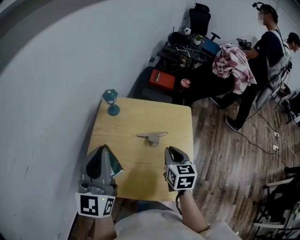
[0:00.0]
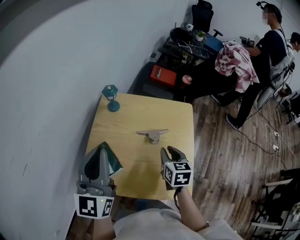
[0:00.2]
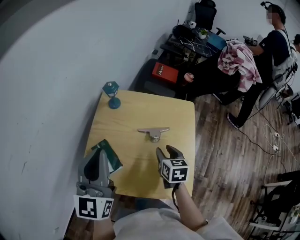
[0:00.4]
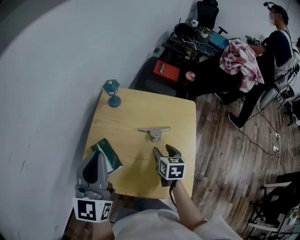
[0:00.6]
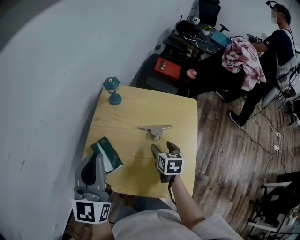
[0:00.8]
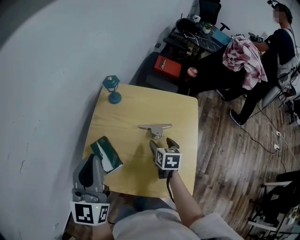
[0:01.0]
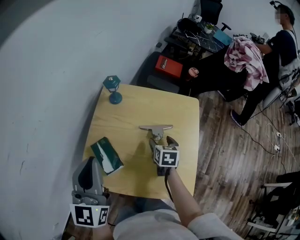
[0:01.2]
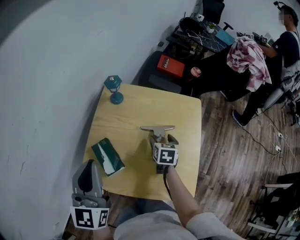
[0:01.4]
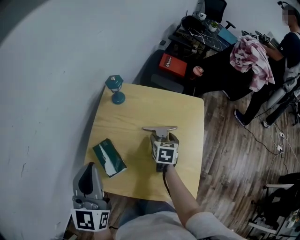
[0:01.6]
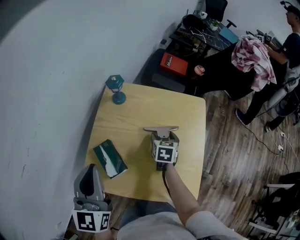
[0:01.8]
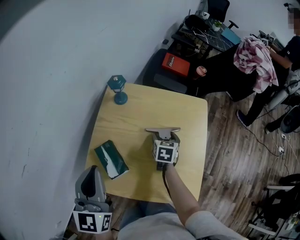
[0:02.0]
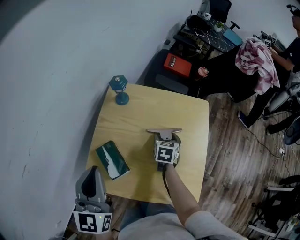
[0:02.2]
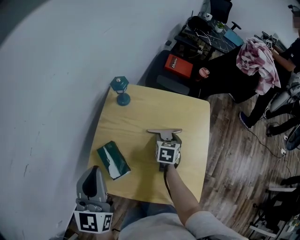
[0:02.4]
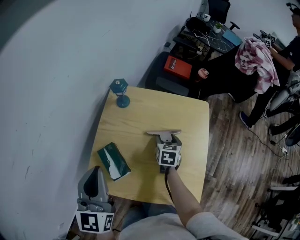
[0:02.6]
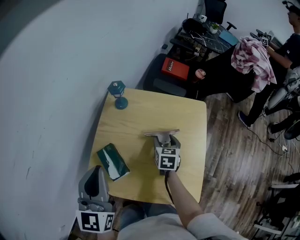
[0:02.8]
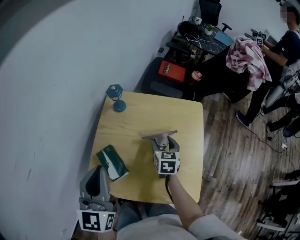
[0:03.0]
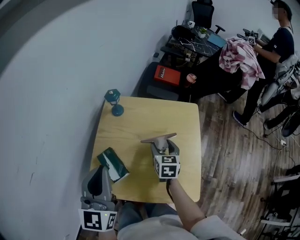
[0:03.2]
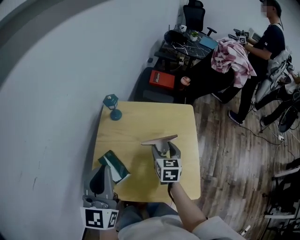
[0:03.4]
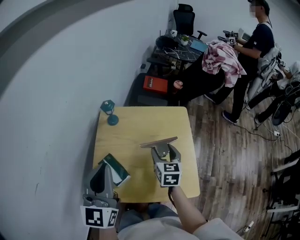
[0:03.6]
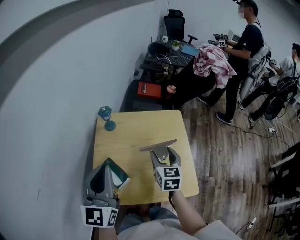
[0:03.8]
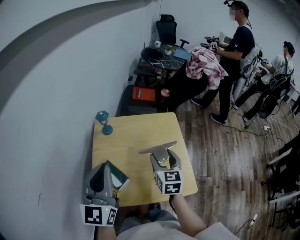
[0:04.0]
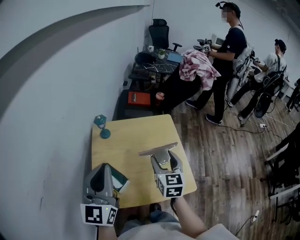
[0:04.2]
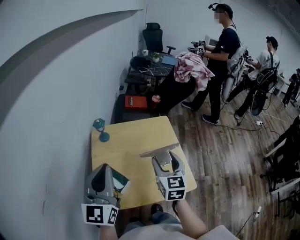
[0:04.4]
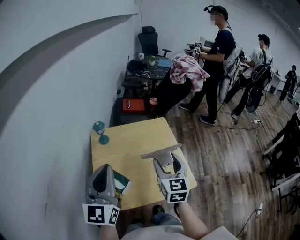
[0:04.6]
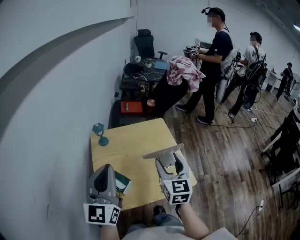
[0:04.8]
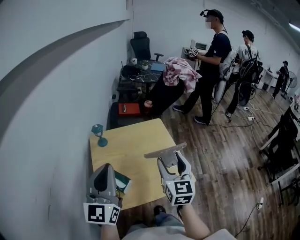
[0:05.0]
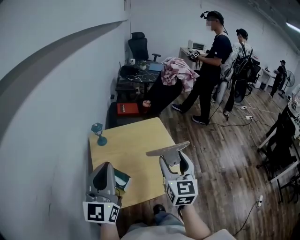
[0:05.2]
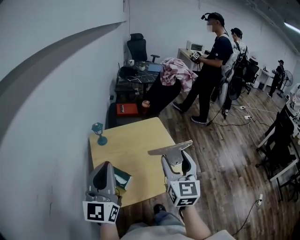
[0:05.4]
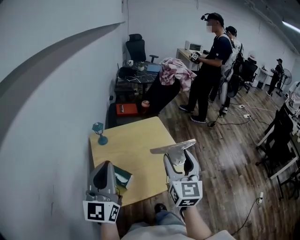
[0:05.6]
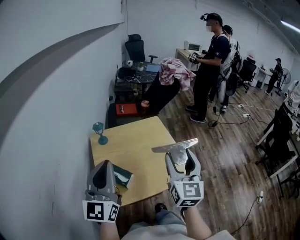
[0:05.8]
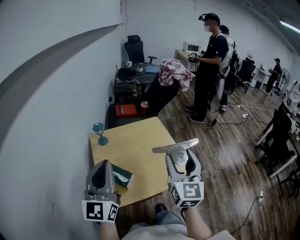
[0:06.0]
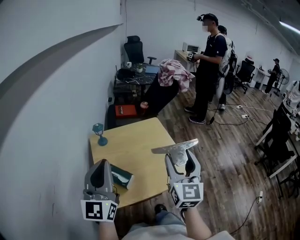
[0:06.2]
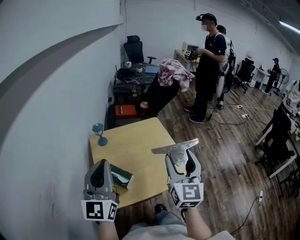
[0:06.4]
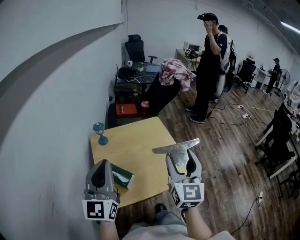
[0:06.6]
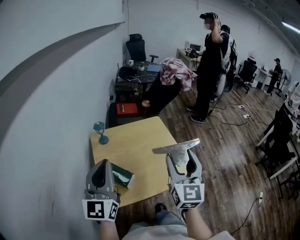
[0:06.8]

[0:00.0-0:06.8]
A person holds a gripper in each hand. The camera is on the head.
0:00.0 to 0:01.4: The left gripper goes approximately 5 cm downward. The right gripper travels downward and forward by approximately 15 cm, and opens.
0:01.4 to 0:02.8: The grippers stay close to where they were, moving slightly.
0:02.8 to 0:04.0: The left gripper goes some 10 cm upward, and swivels some 20 degrees. The right gripper moves upward and backward, about 20 cm, and swivels some 20 degrees.
0:04.0 to 0:05.4: The left gripper heads backward, covering about 5 cm; the right gripper moves backward and upward, about 20 cm, and swivels roughly 30 degrees.
0:05.4 to 0:06.8: The grippers make only small movements.

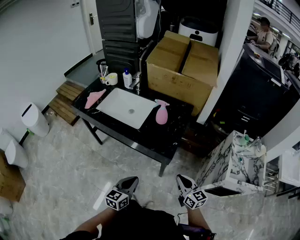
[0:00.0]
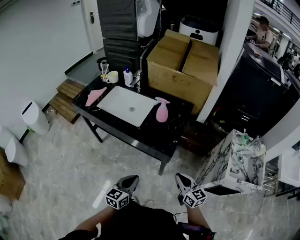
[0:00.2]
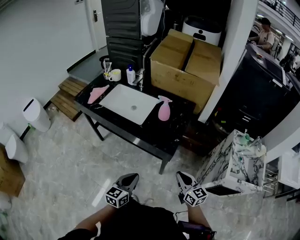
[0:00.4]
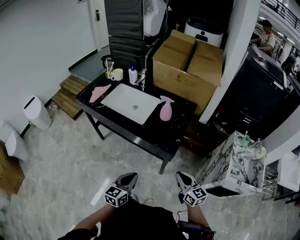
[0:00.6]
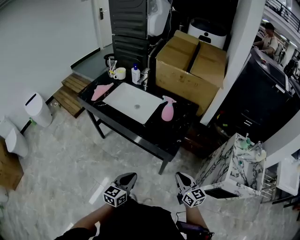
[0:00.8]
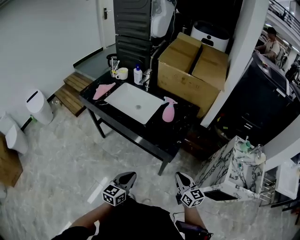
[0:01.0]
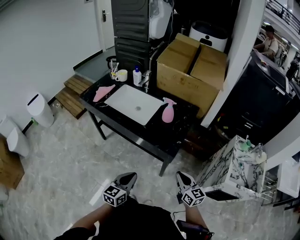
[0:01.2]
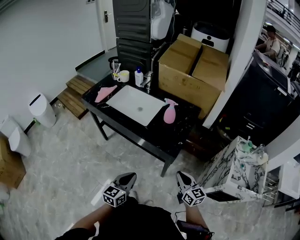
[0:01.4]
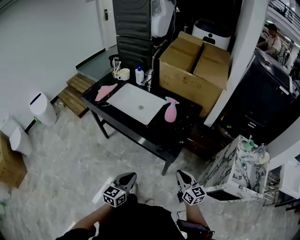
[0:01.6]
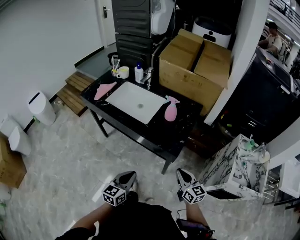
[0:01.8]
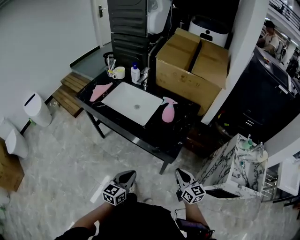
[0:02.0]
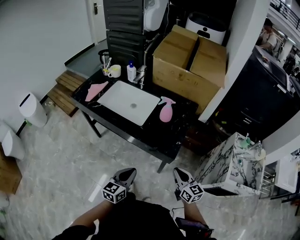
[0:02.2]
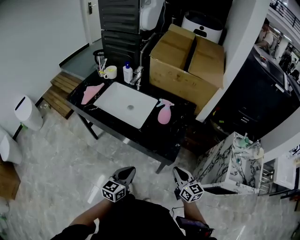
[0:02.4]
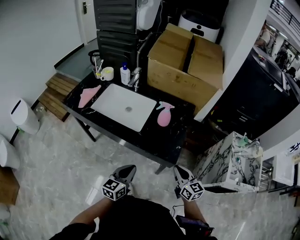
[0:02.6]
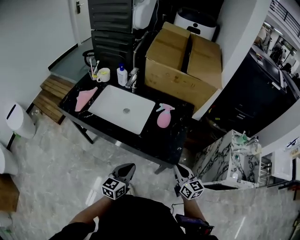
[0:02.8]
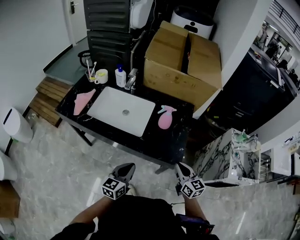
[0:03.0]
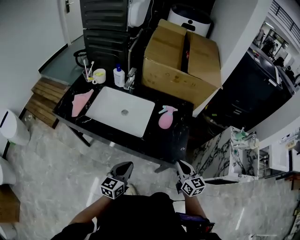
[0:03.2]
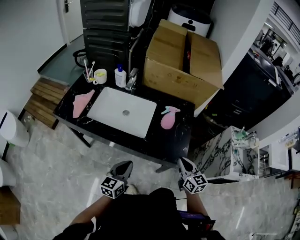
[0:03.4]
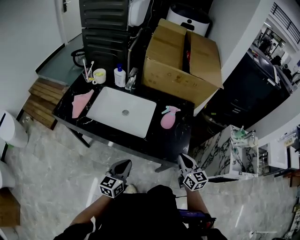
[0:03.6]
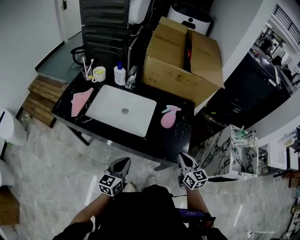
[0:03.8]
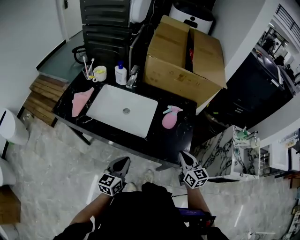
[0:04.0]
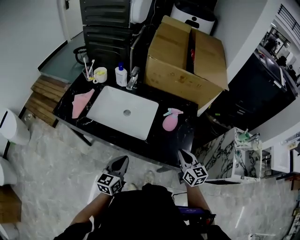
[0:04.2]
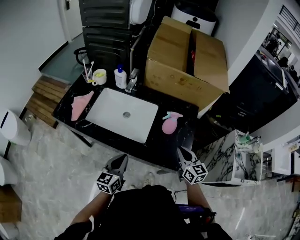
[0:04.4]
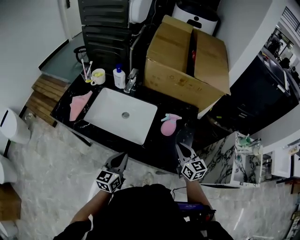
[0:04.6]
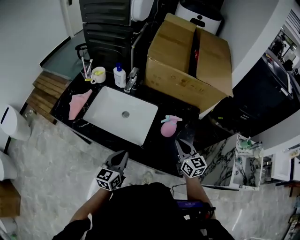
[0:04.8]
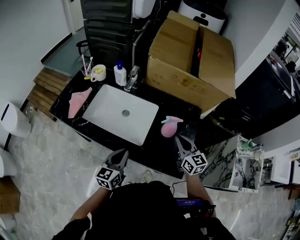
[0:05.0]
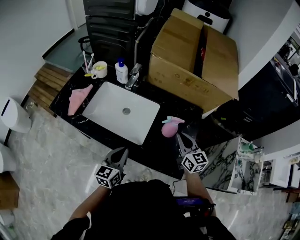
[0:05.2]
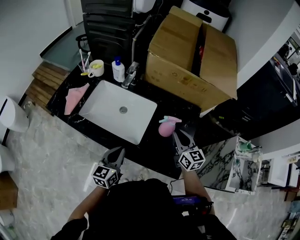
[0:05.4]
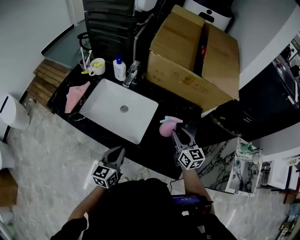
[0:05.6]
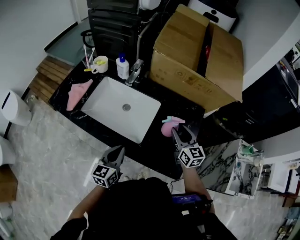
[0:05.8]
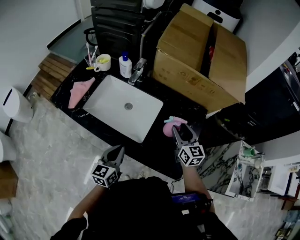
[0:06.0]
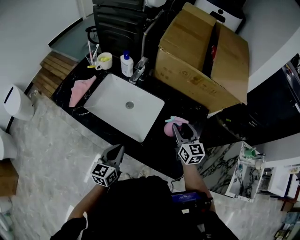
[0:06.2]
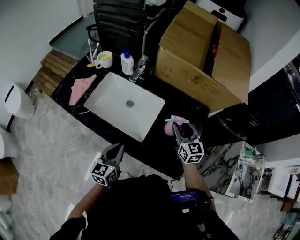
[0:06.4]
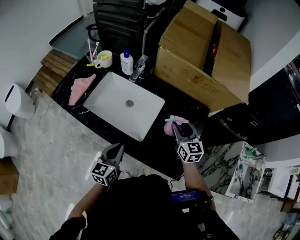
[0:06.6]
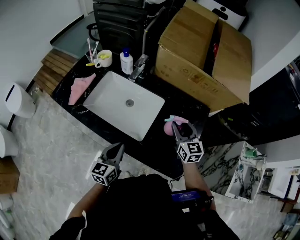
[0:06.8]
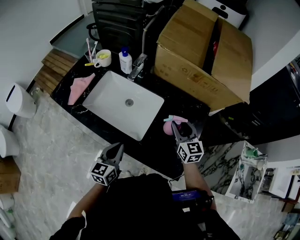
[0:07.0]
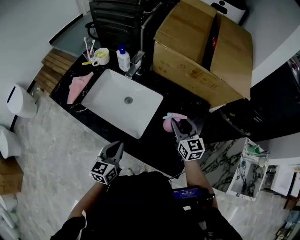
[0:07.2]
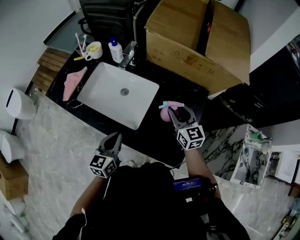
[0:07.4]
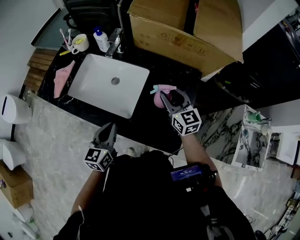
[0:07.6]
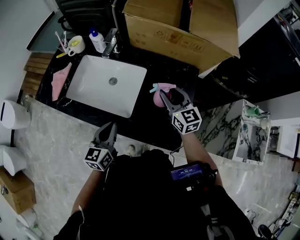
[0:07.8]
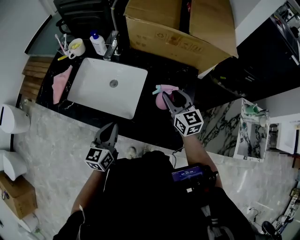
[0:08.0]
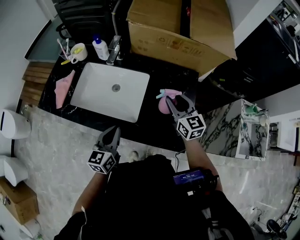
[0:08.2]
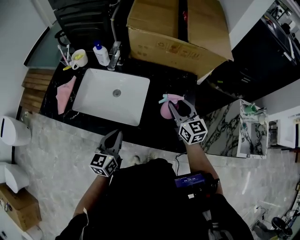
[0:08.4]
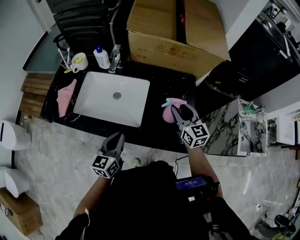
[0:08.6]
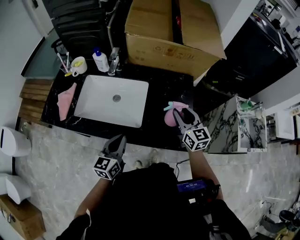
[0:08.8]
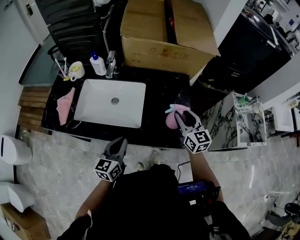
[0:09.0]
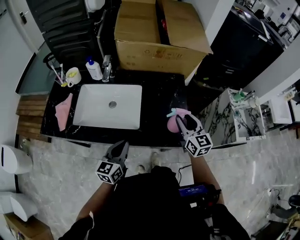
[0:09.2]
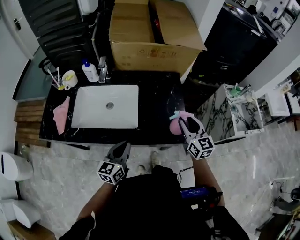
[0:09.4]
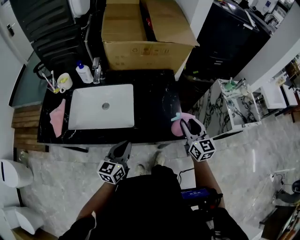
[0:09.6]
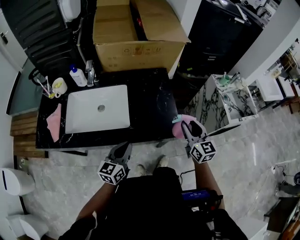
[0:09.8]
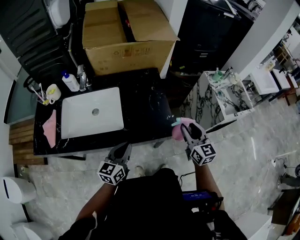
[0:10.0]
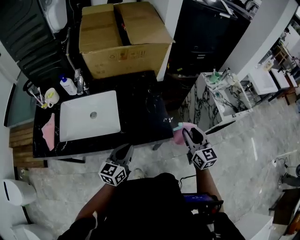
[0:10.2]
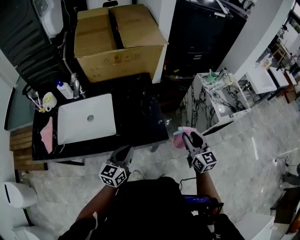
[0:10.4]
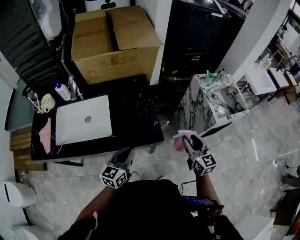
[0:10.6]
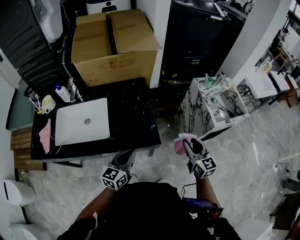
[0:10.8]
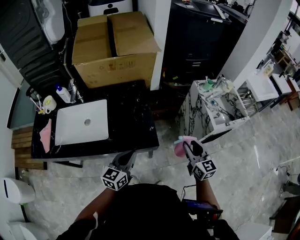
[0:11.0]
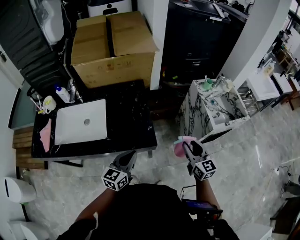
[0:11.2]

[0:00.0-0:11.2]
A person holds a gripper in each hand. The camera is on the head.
0:00.0 to 0:01.6: The grippers move only a little.
0:01.6 to 0:03.2: Both grippers travel together forward and to the left, approximately 20 cm.
0:03.2 to 0:04.8: The right gripper goes some 15 cm forward, while the left gripper heads forward, covering roughly 10 cm.
0:04.8 to 0:06.4: The right gripper shifts roughly 10 cm forward, and opens.
0:06.4 to 0:08.0: The grippers make only small movements.
0:08.0 to 0:09.6: The left gripper shifts by roughly 5 cm, and changes its angle by approximately 30 degrees; the right gripper changes place by roughly 20 cm, and rotates some 30 degrees.
0:09.6 to 0:11.2: The grippers both shift to the right by roughly 20 cm.

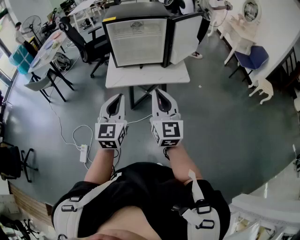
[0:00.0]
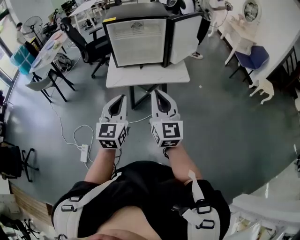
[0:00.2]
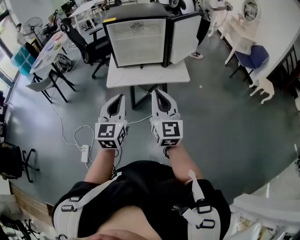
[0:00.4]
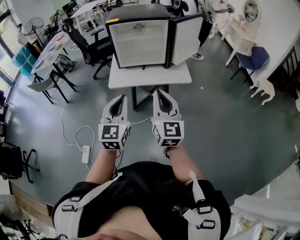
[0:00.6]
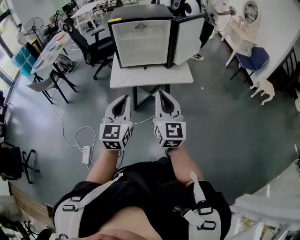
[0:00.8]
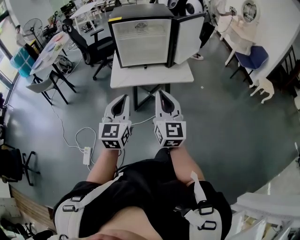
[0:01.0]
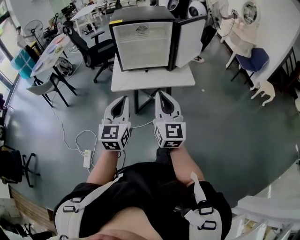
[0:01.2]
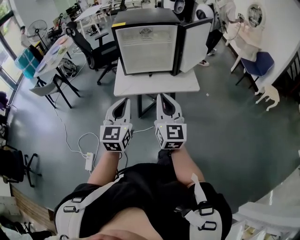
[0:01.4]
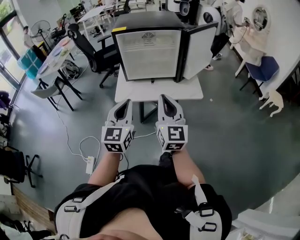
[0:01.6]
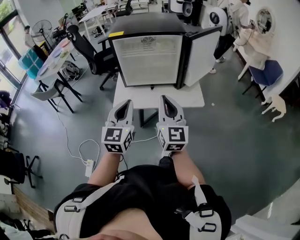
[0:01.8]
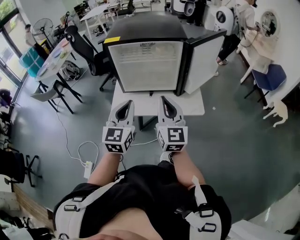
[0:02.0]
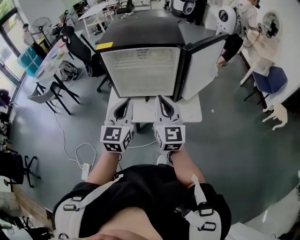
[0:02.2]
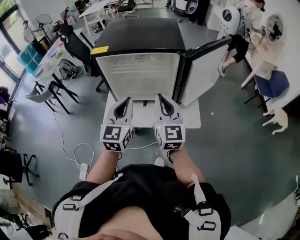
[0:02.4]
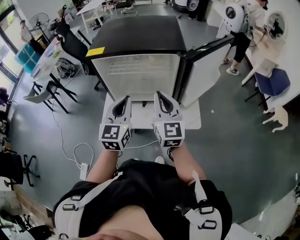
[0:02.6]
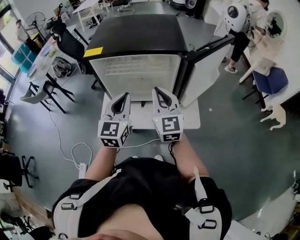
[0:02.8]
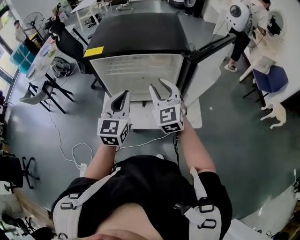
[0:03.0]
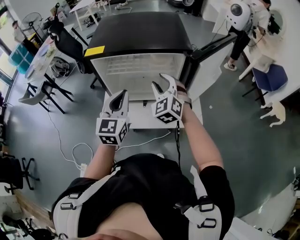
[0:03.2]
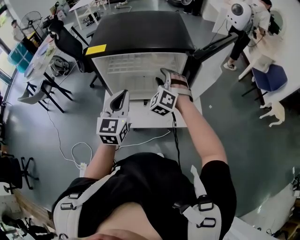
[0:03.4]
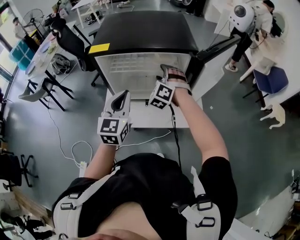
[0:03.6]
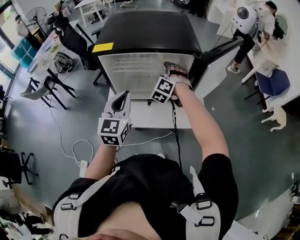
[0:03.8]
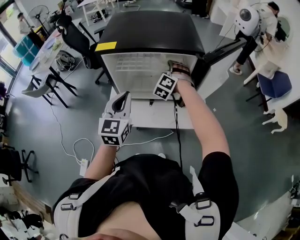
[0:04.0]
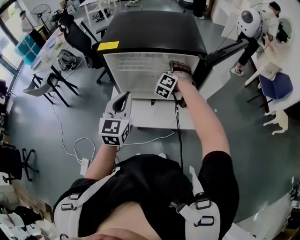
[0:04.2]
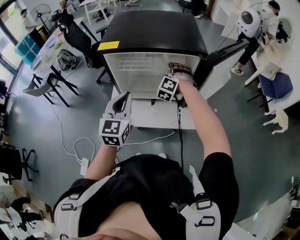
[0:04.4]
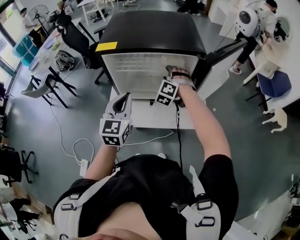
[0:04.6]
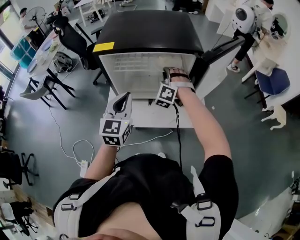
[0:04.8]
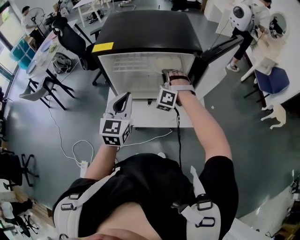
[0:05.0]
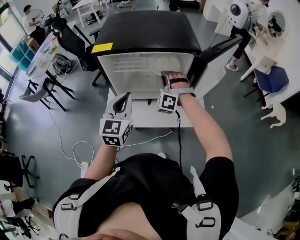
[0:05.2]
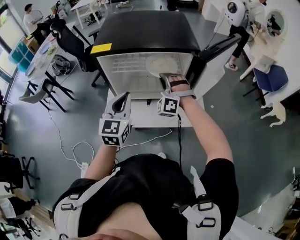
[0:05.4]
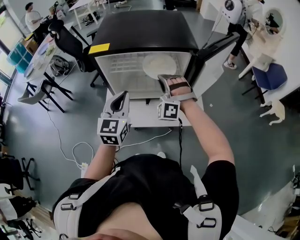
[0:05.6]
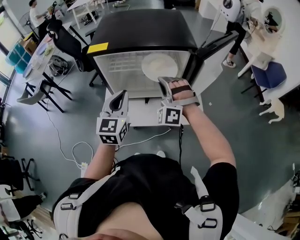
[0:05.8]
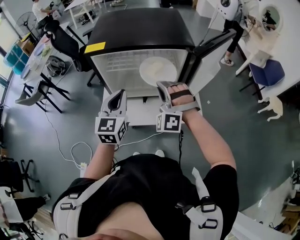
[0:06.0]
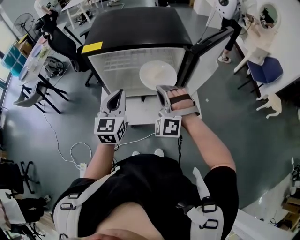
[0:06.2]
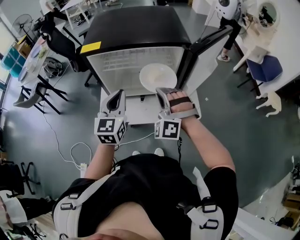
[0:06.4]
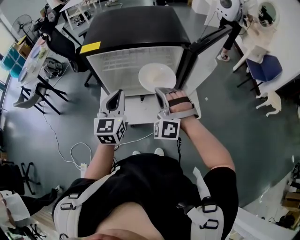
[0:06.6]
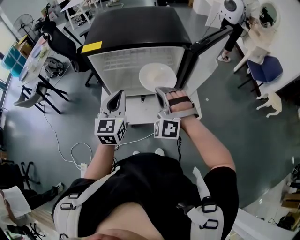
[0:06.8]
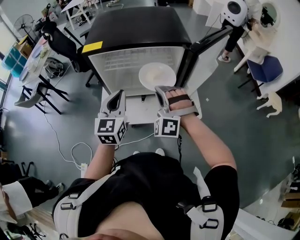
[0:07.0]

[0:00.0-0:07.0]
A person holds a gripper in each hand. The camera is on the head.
0:00.0 to 0:01.4: The right gripper moves about 5 cm.
0:01.4 to 0:02.8: Both grippers travel together forward, about 35 cm.
0:02.8 to 0:04.2: The right gripper goes roughly 25 cm forward and downward, points its fingers approximately 40 degrees further downward, and opens up. The left gripper travels to the left by about 5 cm.
0:04.2 to 0:05.6: The right gripper shifts approximately 15 cm backward and upward, rotates approximately 30 degrees, and closes.
0:05.6 to 0:07.0: The right gripper moves backward, some 10 cm.
